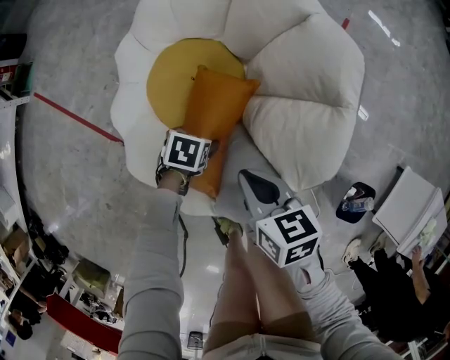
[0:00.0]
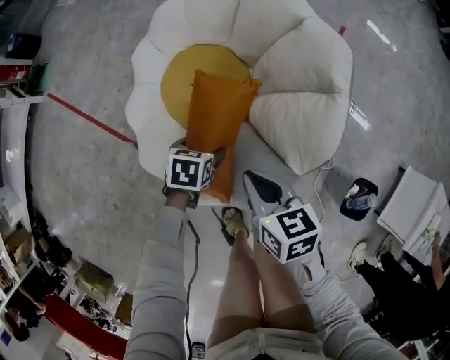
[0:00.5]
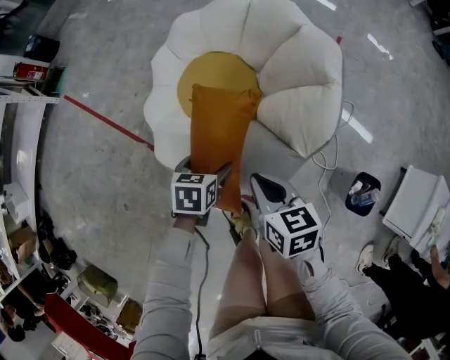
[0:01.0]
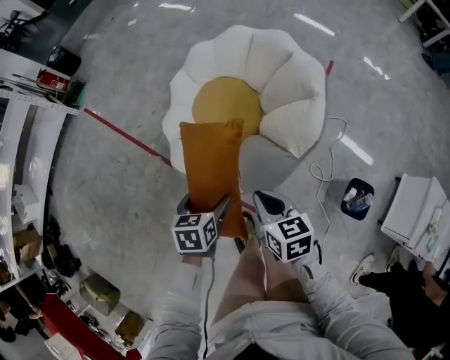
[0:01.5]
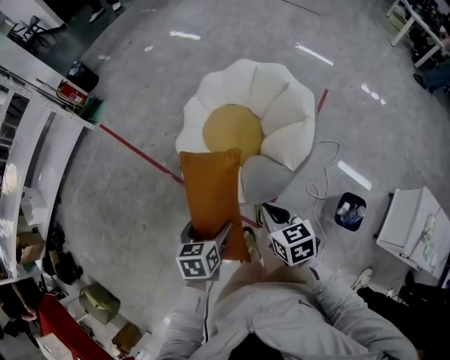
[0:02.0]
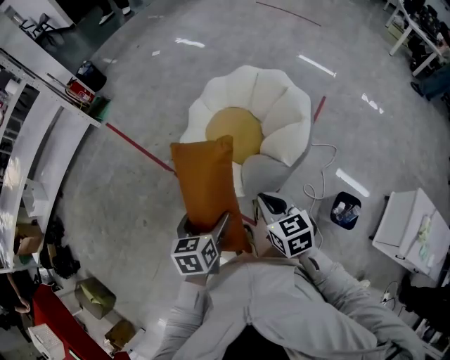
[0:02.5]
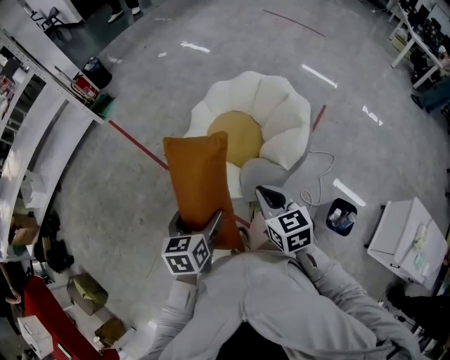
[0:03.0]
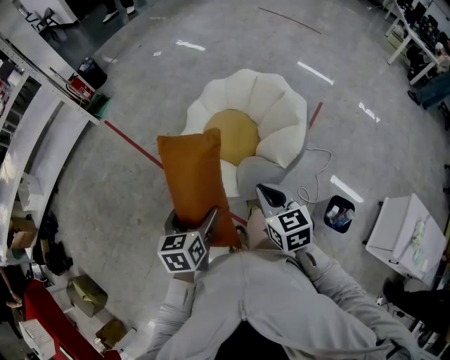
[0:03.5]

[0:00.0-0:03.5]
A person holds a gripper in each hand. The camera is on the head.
0:00.0 to 0:02.0: The left gripper moves upward, approximately 35 cm, and rotates approximately 40 degrees; the right gripper heads upward, covering approximately 20 cm.
0:02.0 to 0:03.5: Both grippers move upward, about 10 cm.

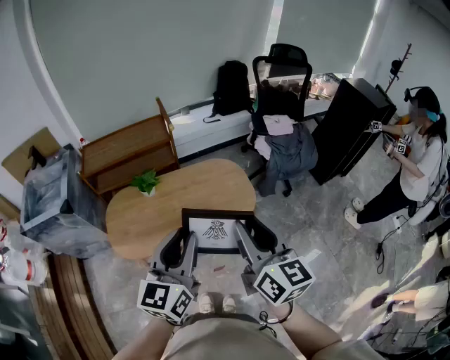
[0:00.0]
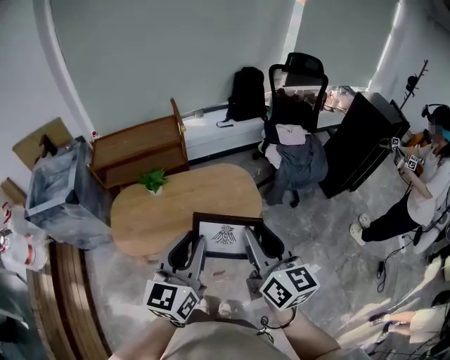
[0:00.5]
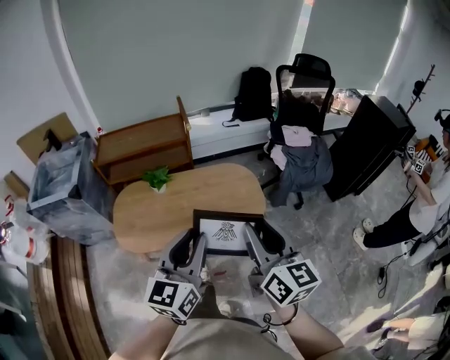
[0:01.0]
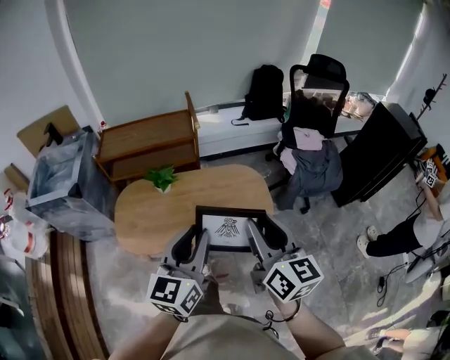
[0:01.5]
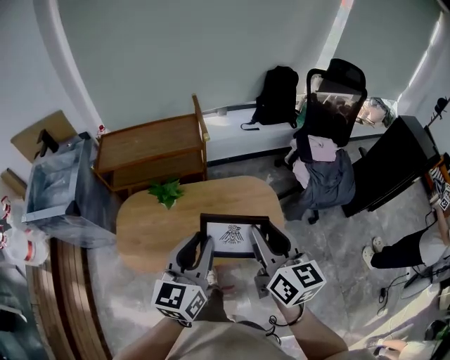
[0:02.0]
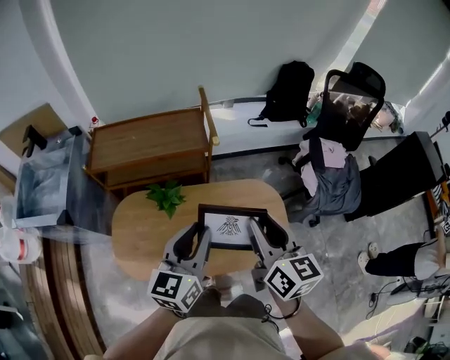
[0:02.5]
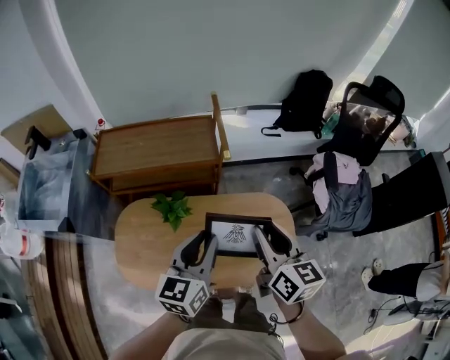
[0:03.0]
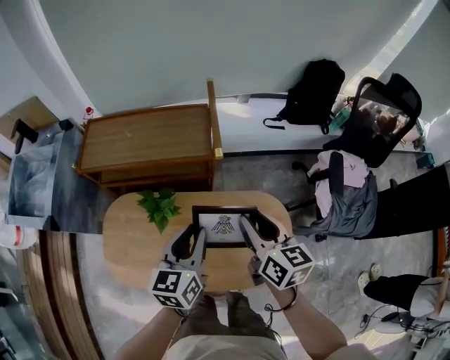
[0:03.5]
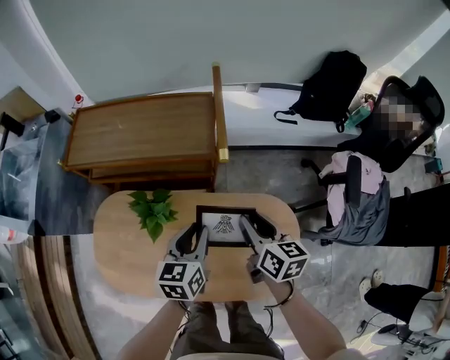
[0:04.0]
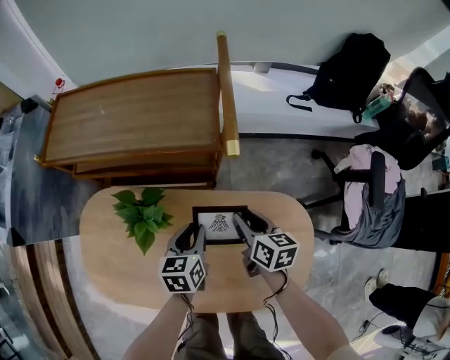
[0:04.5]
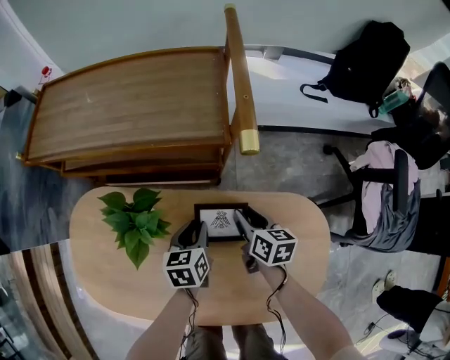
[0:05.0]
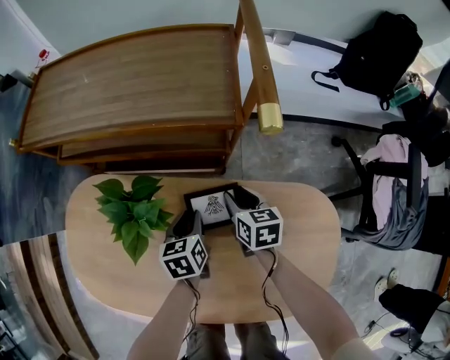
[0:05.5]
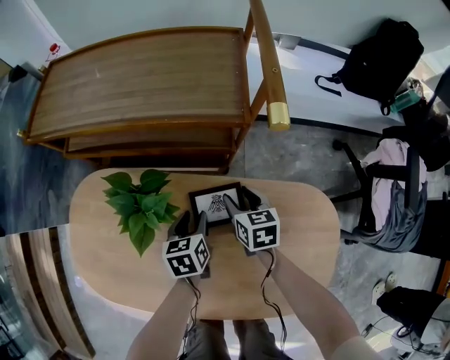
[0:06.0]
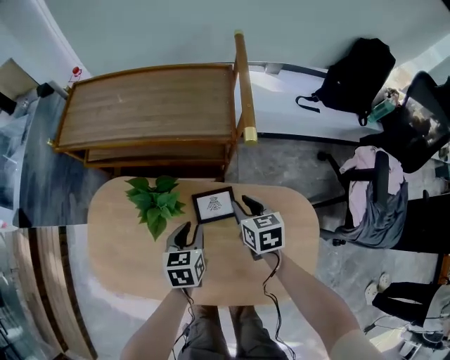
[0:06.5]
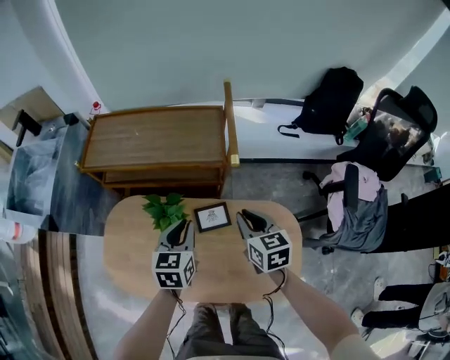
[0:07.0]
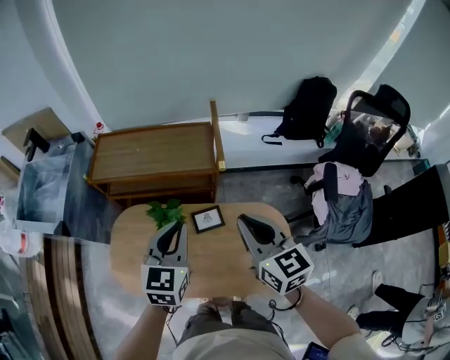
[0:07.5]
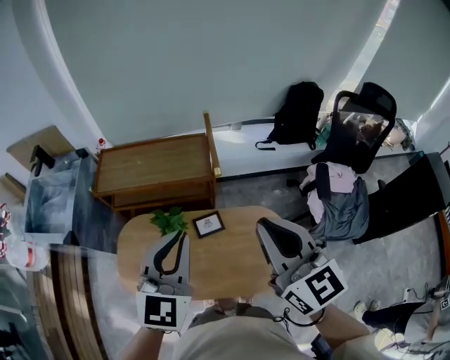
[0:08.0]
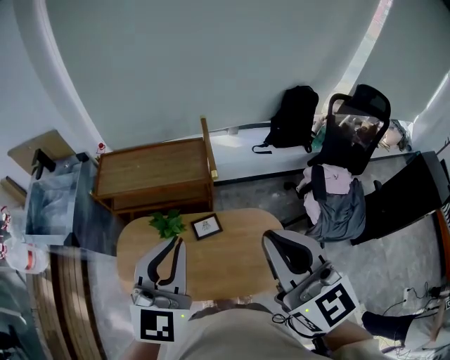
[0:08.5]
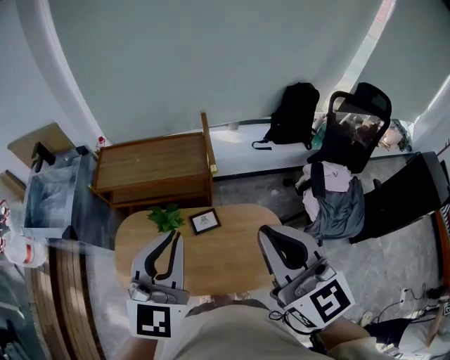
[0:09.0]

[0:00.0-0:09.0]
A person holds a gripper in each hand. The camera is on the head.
0:00.0 to 0:02.0: The two grippers go some 20 cm forward.
0:02.0 to 0:04.5: Both grippers travel together downward and forward, about 60 cm. The left gripper angles its fingers downward, by roughly 30 degrees, while the right gripper rotates some 40 degrees.
0:04.5 to 0:07.0: Both grippers move upward, about 20 cm. The right gripper swivels some 20 degrees.
0:07.0 to 0:09.0: The grippers both shift upward and backward by some 40 cm. The right gripper angles its fingers upward, by approximately 30 degrees. Meanwhile the left gripper rotates some 40 degrees.

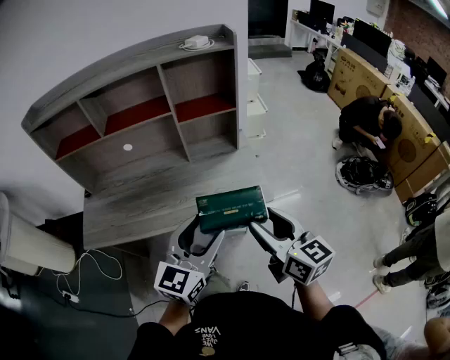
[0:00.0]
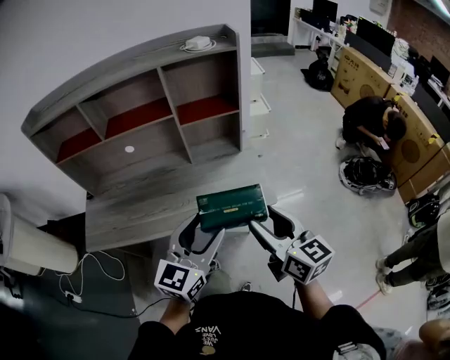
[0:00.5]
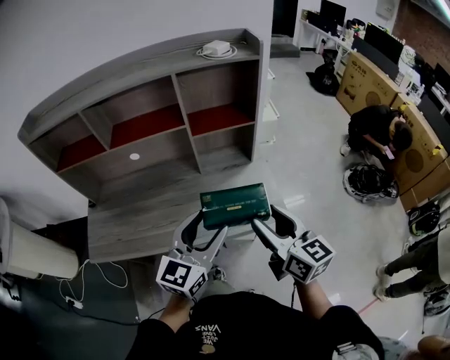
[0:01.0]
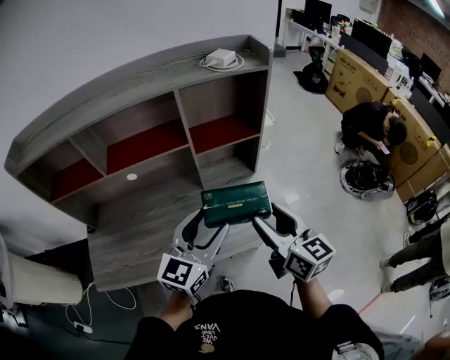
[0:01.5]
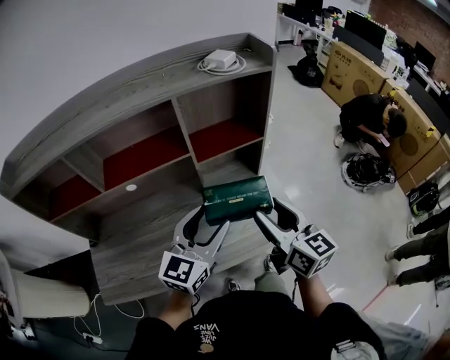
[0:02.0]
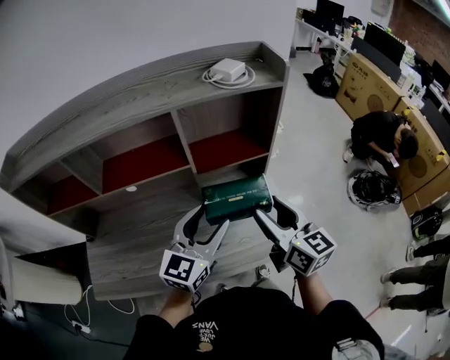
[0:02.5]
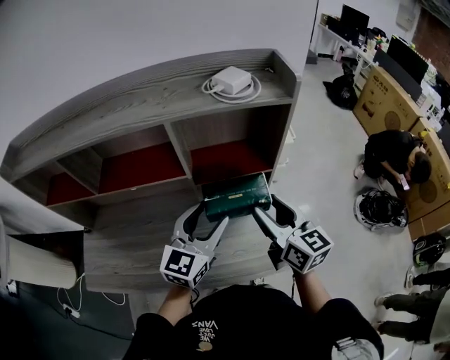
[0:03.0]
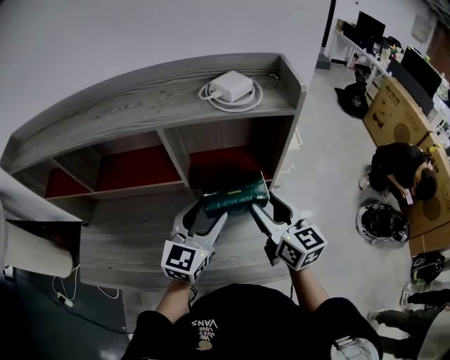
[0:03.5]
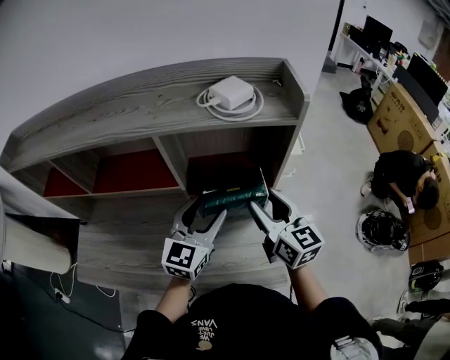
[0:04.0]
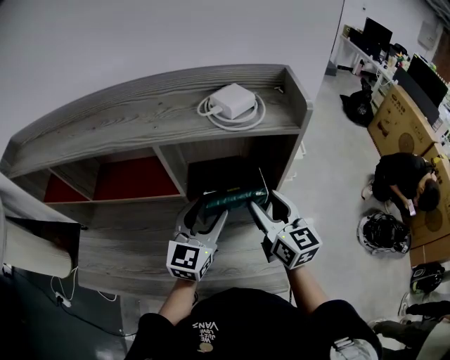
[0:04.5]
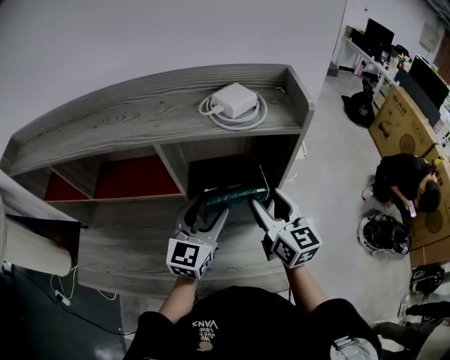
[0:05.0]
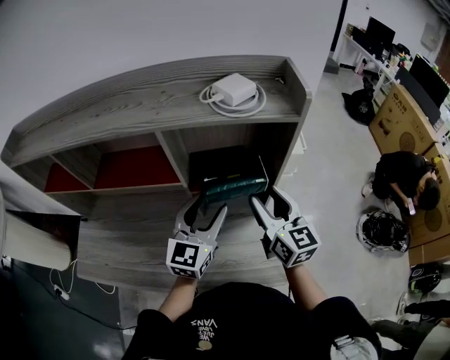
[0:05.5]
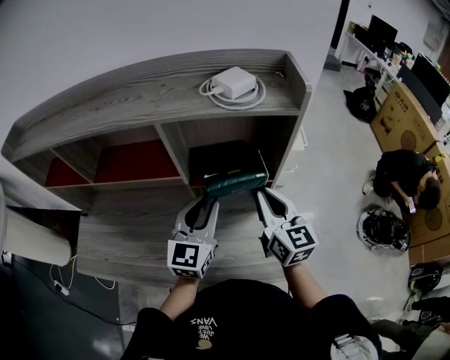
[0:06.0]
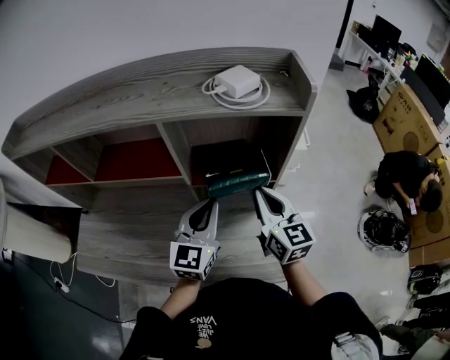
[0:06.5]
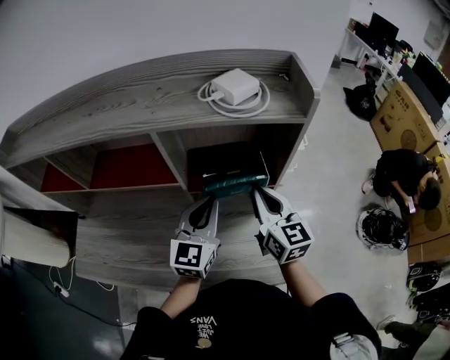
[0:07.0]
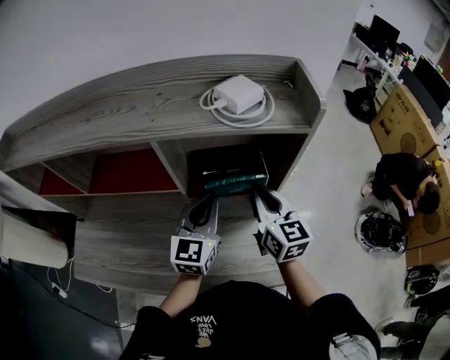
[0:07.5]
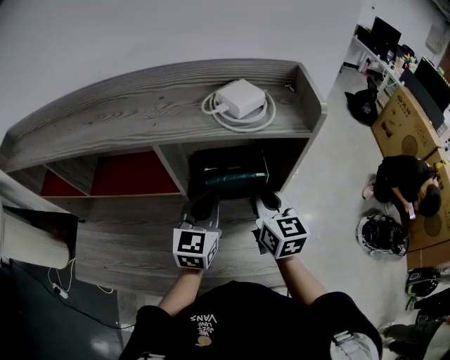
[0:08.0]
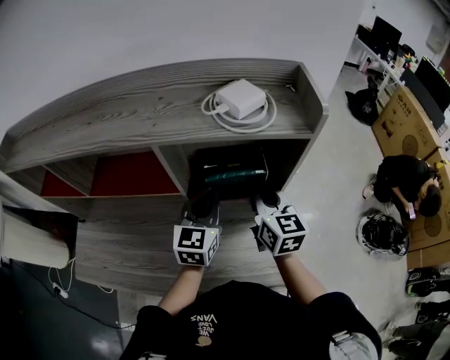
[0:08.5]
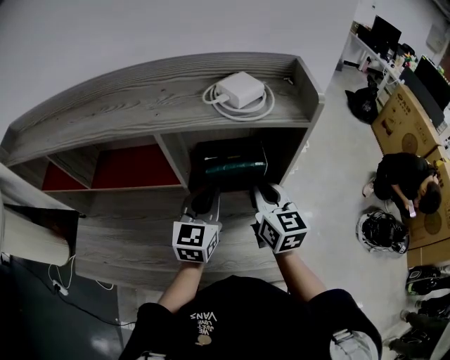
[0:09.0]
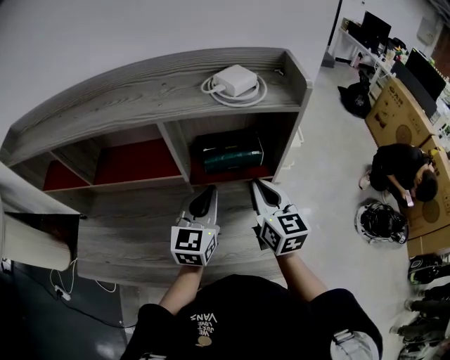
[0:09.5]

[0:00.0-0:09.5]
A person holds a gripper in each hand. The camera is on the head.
0:00.0 to 0:02.0: The two grippers go roughly 25 cm forward and to the left.
0:02.0 to 0:04.0: Both grippers move forward, some 20 cm. The left gripper rotates some 20 degrees.
0:04.0 to 0:05.5: The grippers stay close to where they were, moving slightly.
0:05.5 to 0:07.5: The right gripper closes up; the left gripper closes up.
0:07.5 to 0:09.5: The grippers stay close to where they were, moving slightly.

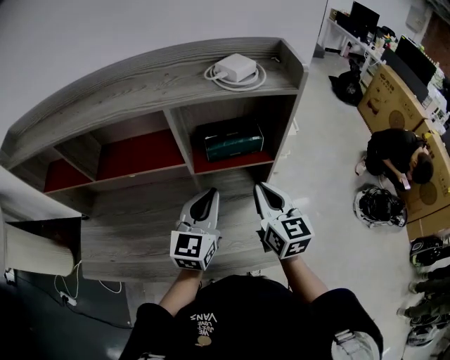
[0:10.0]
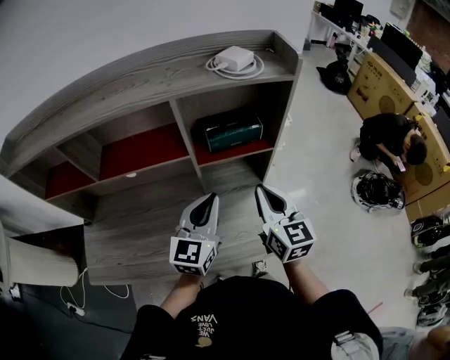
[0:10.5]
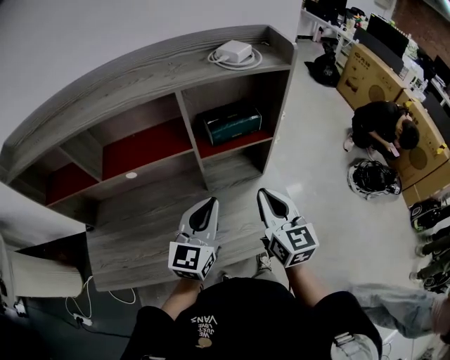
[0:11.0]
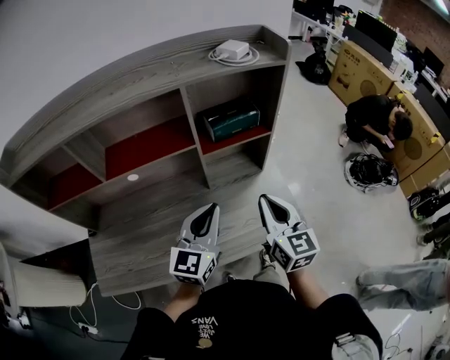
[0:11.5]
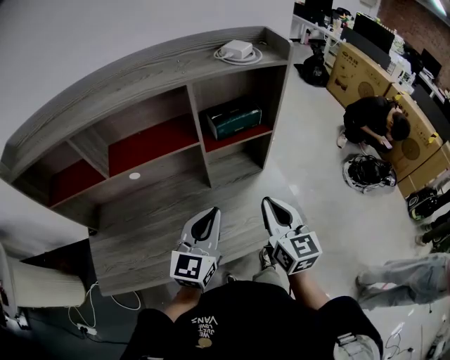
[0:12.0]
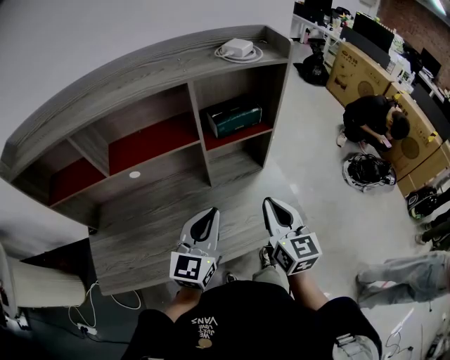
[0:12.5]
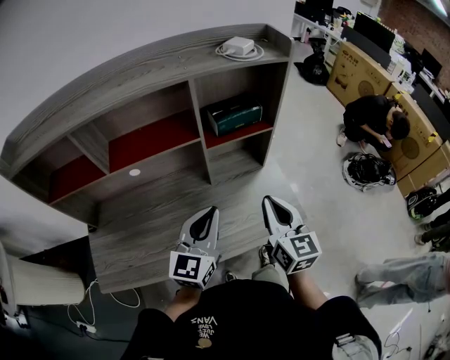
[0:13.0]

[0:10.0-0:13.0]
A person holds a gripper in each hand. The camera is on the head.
0:10.0 to 0:11.5: Both grippers move backward, some 10 cm.
0:11.5 to 0:13.0: The grippers make only small movements.

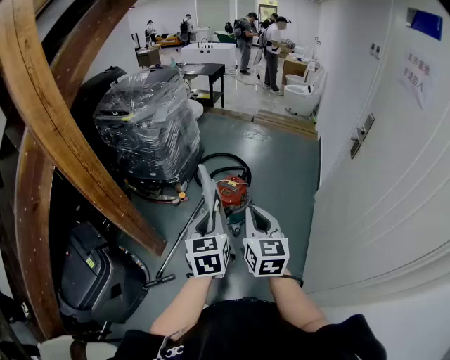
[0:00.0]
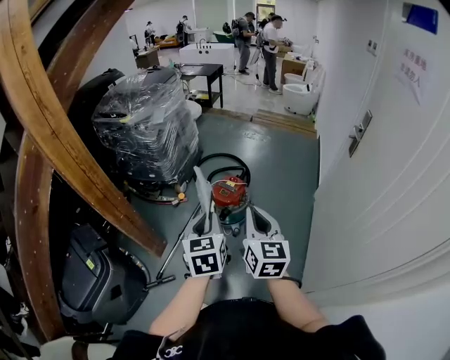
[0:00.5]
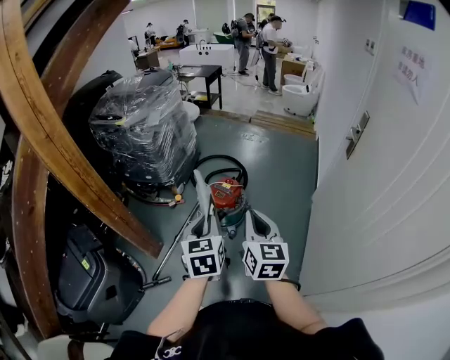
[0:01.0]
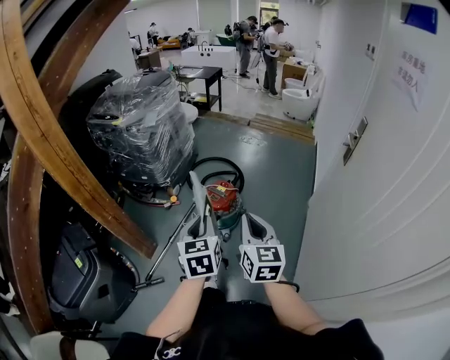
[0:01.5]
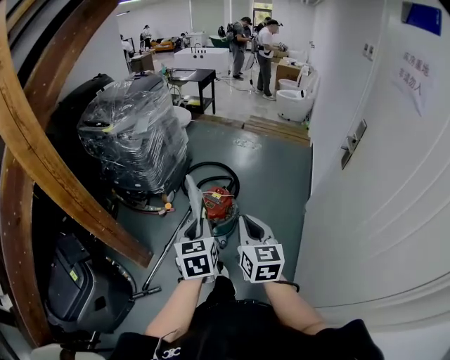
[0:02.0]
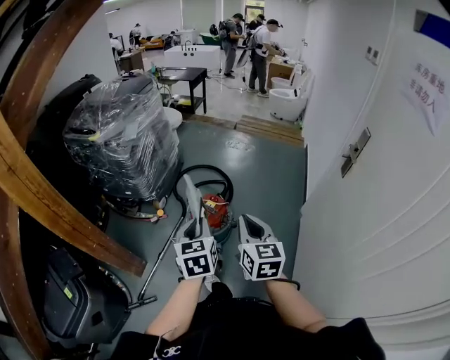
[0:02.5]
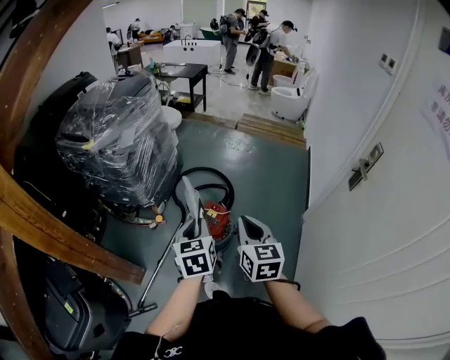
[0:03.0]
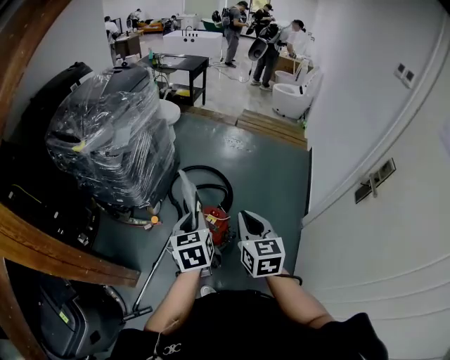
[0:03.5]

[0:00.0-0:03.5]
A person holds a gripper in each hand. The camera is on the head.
0:00.0 to 0:02.0: The left gripper travels forward and to the right by roughly 10 cm; the right gripper shifts some 10 cm to the right and forward.
0:02.0 to 0:03.5: The two grippers go approximately 25 cm forward.
